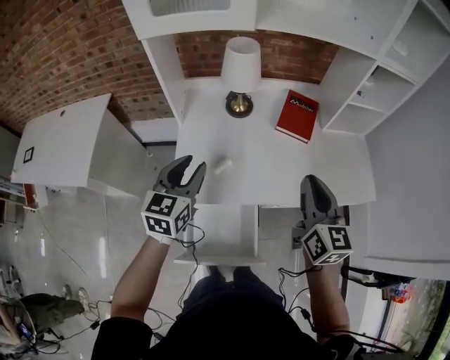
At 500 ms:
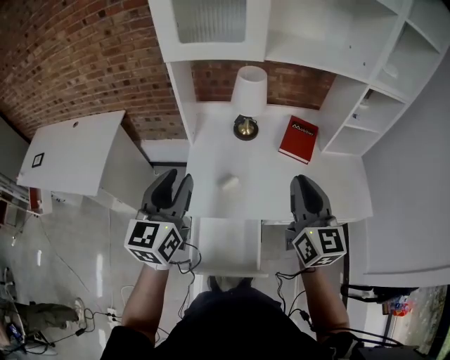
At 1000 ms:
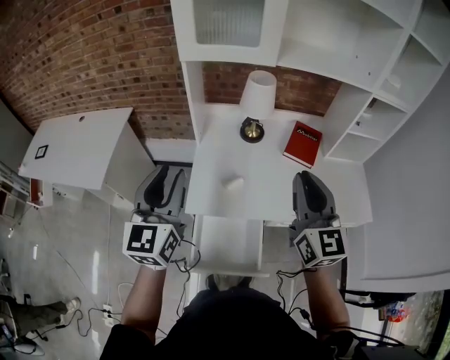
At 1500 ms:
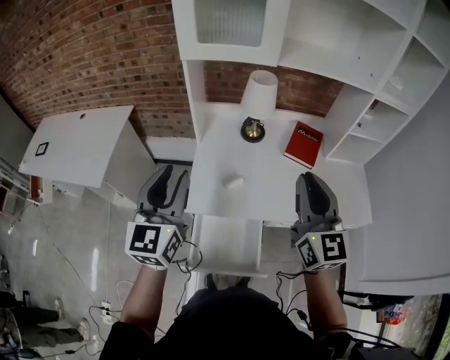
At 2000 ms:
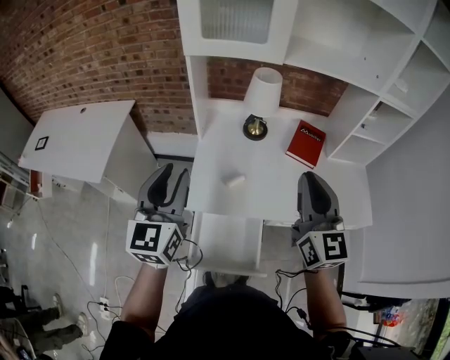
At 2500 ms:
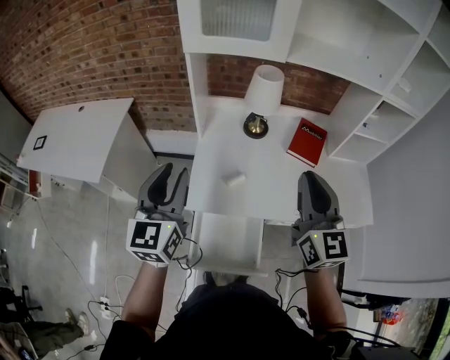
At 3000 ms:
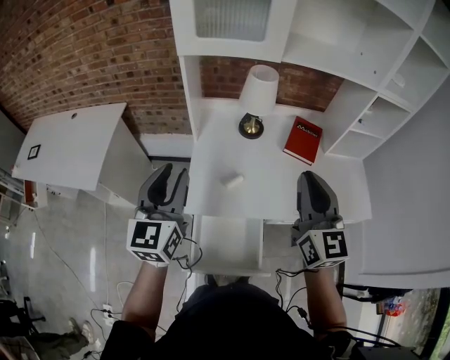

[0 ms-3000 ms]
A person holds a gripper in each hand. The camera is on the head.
0 ms to 1500 ms: The right gripper shifts some 15 cm upward and to the left, and rotates some 20 degrees; the left gripper heads upward, backward and to the left, covering about 20 cm, and rotates some 20 degrees.
1500 ms to 3000 ms: The left gripper ends up some 5 cm from where it was.

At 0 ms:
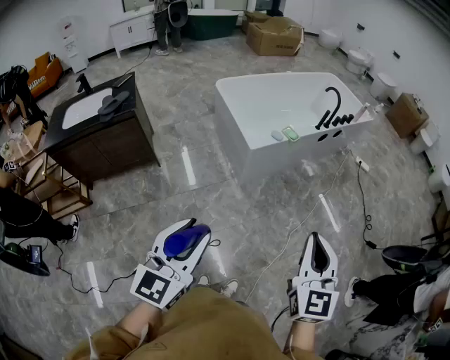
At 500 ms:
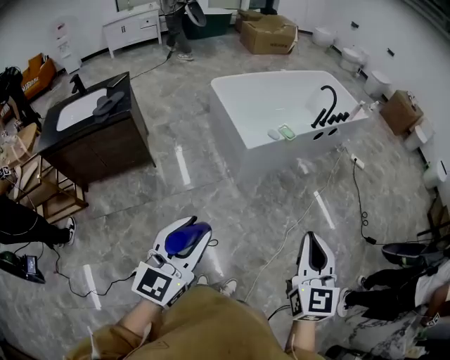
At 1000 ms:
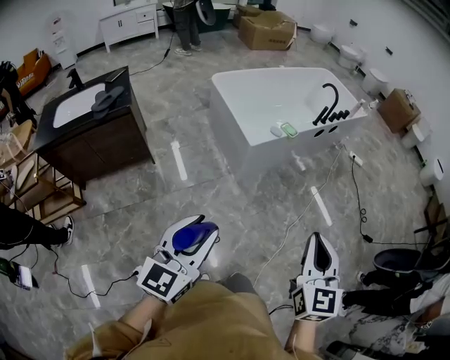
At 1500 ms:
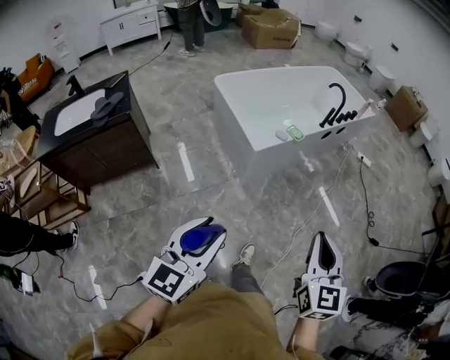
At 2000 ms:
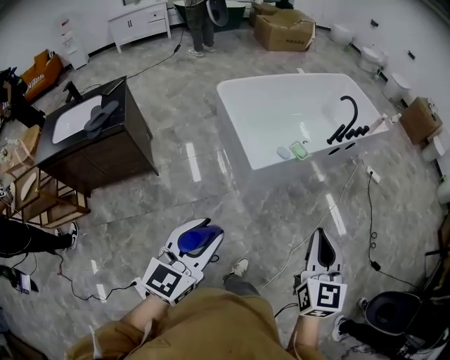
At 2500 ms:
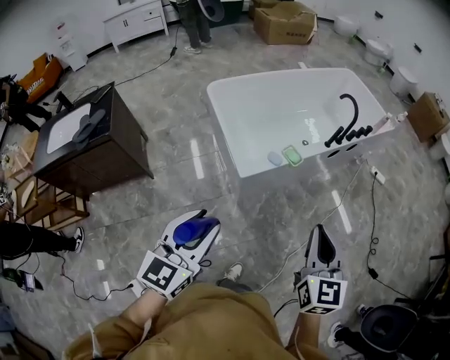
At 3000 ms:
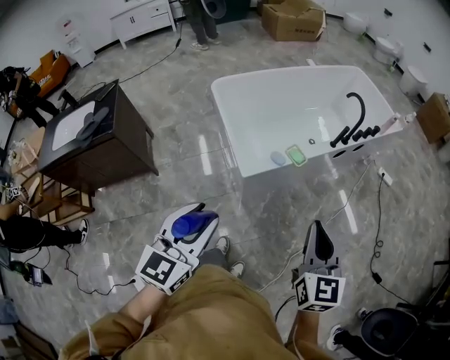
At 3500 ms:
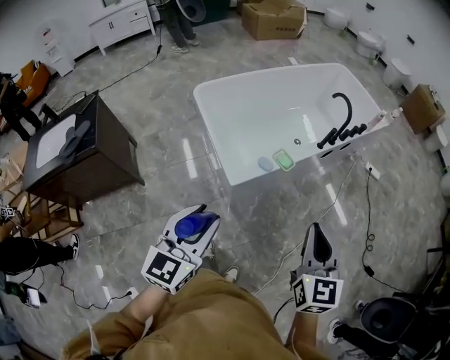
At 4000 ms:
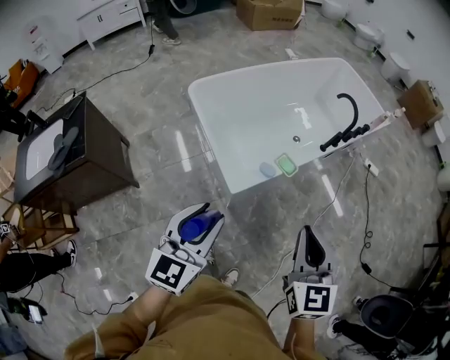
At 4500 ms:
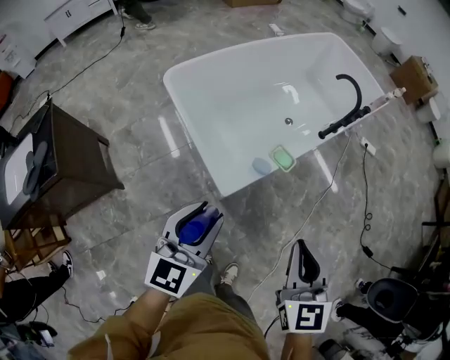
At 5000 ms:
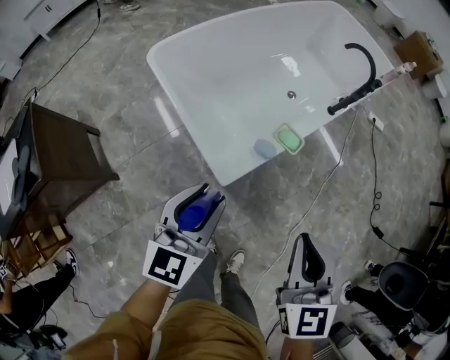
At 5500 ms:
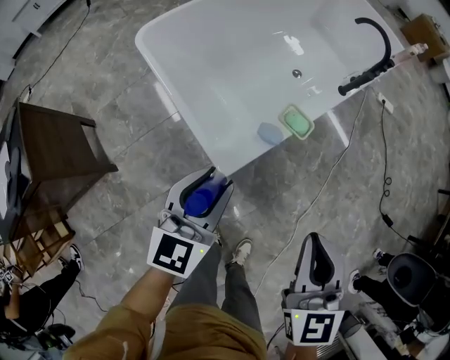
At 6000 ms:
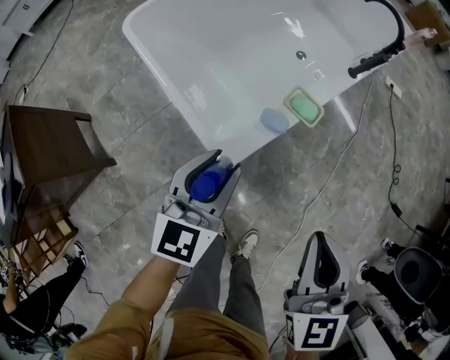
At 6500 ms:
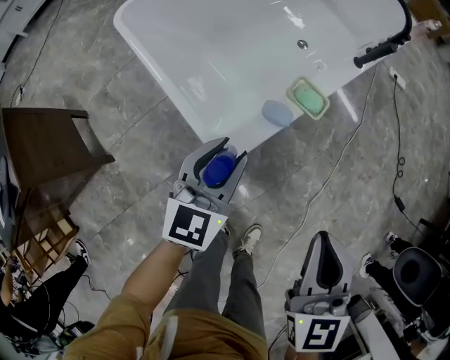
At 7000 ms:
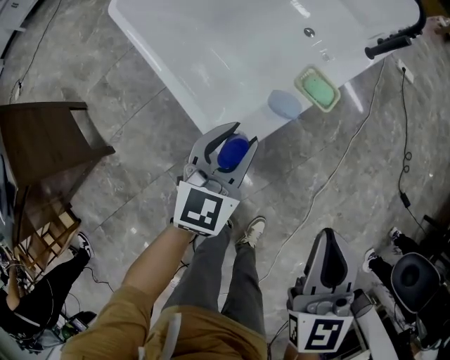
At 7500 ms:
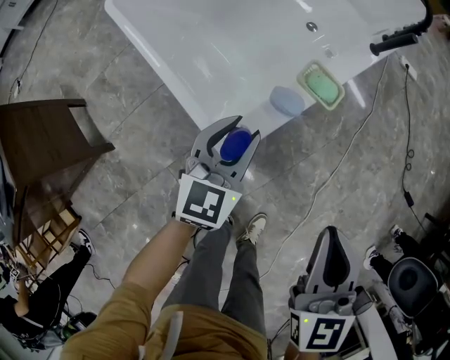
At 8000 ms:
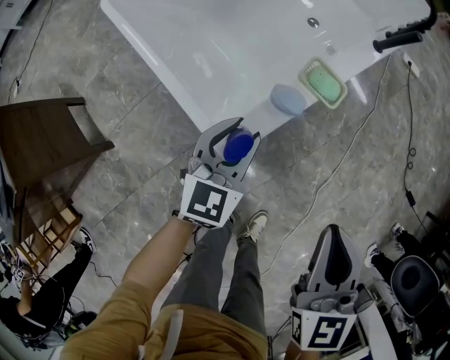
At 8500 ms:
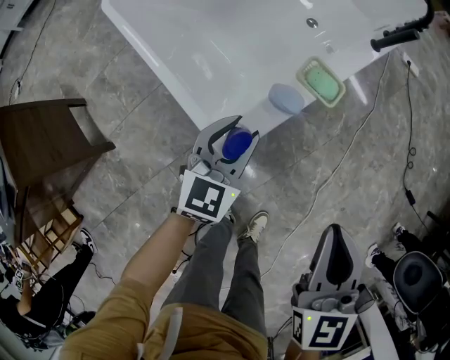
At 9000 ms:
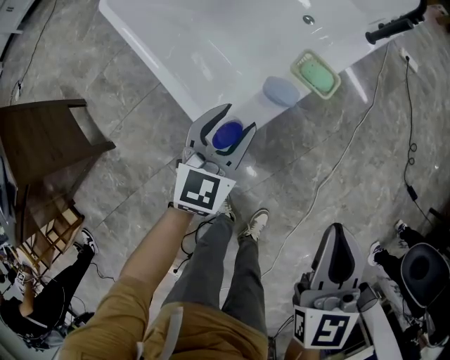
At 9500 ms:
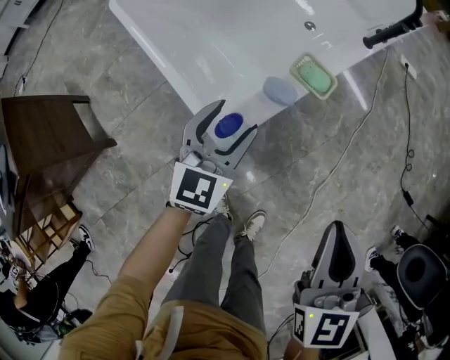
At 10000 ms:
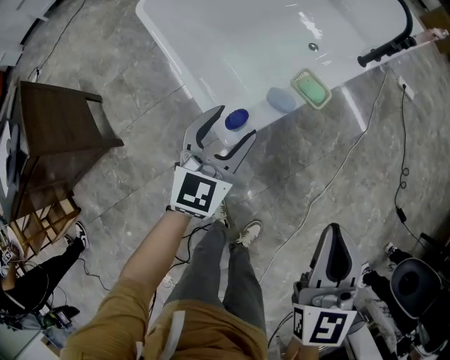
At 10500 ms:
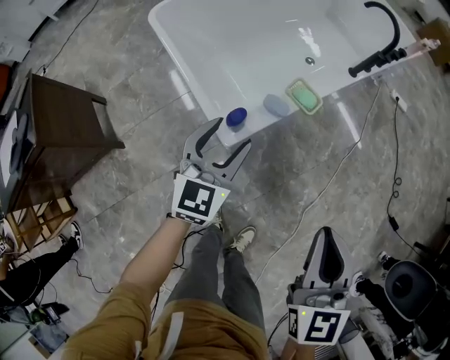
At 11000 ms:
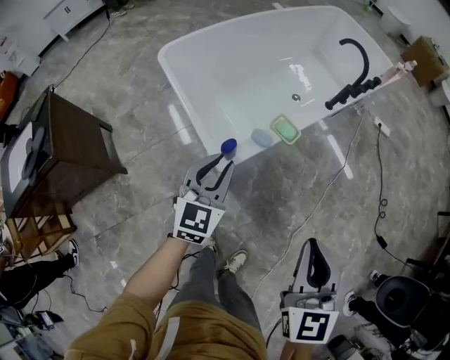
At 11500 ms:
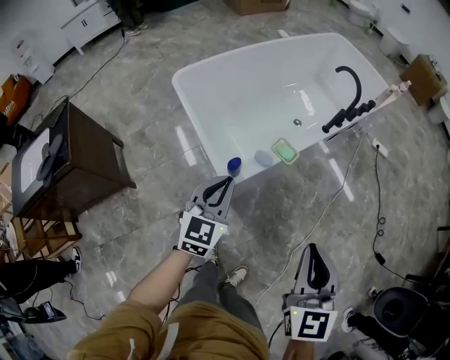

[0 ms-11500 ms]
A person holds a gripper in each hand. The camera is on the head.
0 ms to 2000 ms: The grippers both shift forward by roughly 20 cm.
2000 ms to 4000 ms: The two grippers go roughly 25 cm forward.
4000 ms to 6000 ms: The right gripper heads downward and forward, covering about 20 cm. The left gripper is displaced downward and forward by about 35 cm.
6000 ms to 7500 ms: The left gripper travels downward and forward by roughly 10 cm; the right gripper shifts about 5 cm downward.
7500 ms to 9500 ms: The left gripper opens up.
9500 ms to 11500 ms: The two grippers go approximately 20 cm upward and backward. The left gripper closes its fingers.

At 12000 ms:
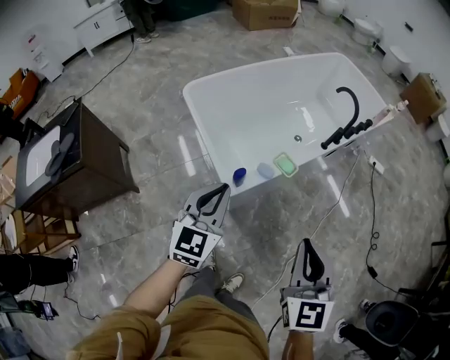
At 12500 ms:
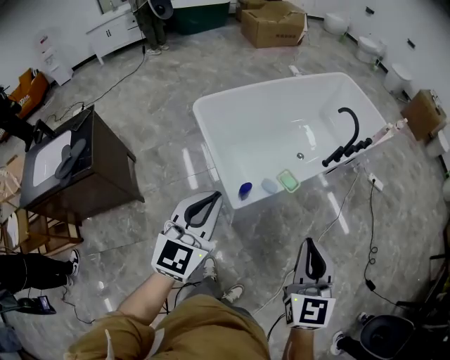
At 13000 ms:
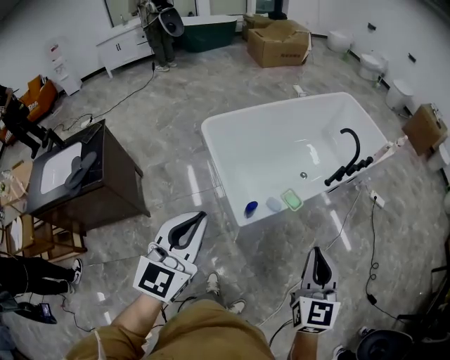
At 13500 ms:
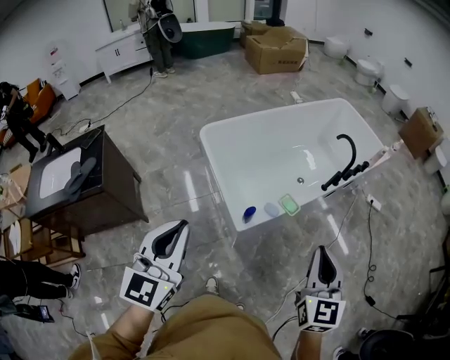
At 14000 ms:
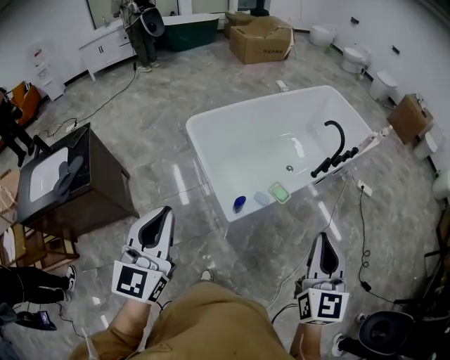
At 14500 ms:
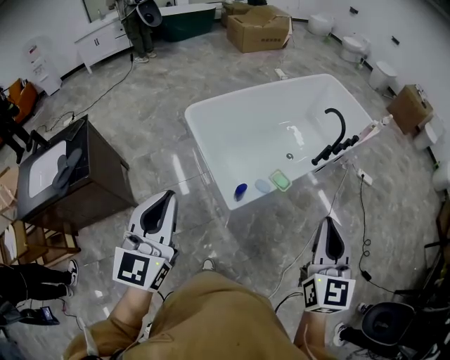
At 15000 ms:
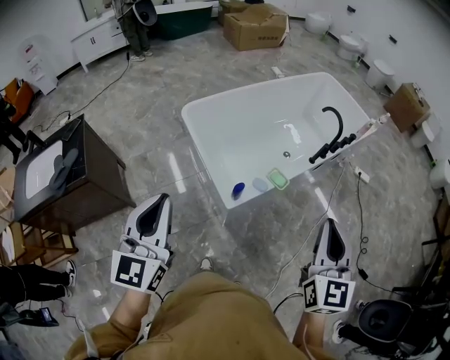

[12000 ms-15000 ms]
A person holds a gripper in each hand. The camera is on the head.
12000 ms to 13500 ms: The left gripper moves upward, to the left and backward, some 25 cm. The right gripper is displaced upward by about 5 cm.
13500 ms to 15000 ms: The grippers stay close to where they were, moving slightly.

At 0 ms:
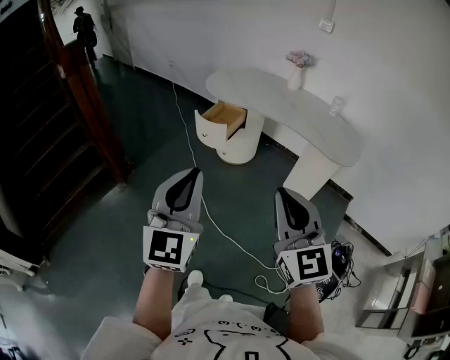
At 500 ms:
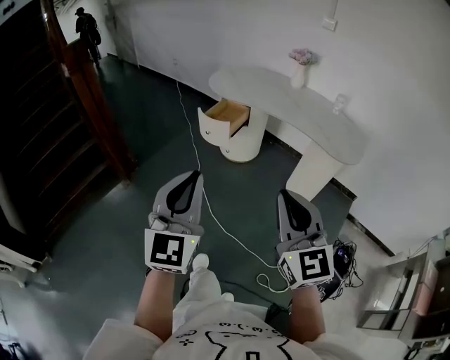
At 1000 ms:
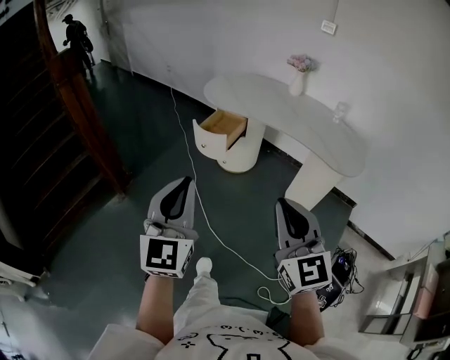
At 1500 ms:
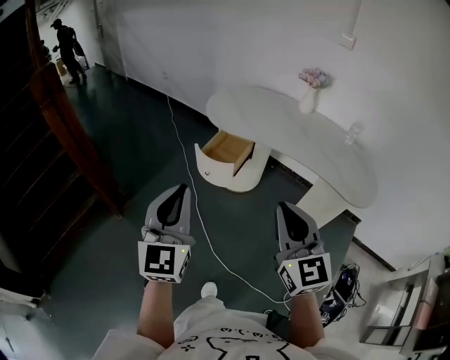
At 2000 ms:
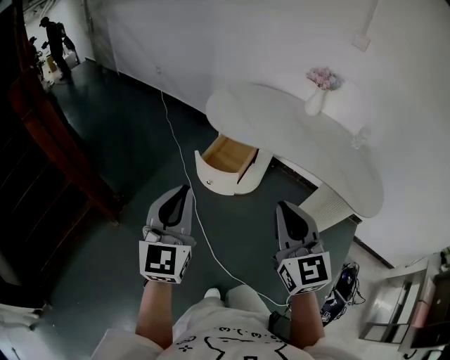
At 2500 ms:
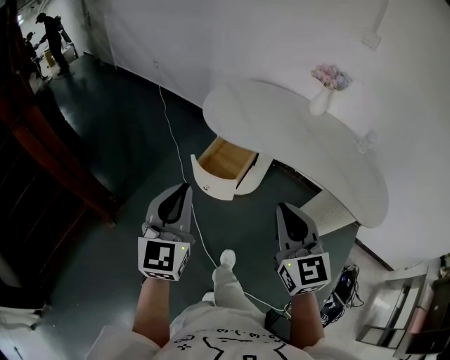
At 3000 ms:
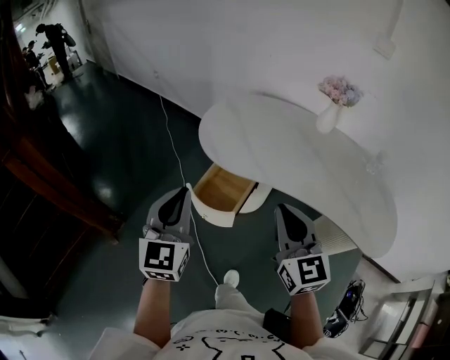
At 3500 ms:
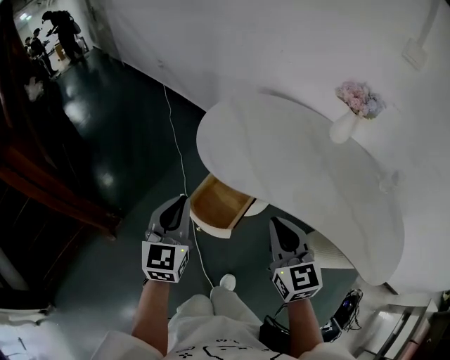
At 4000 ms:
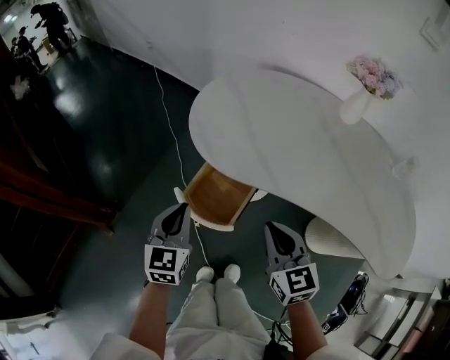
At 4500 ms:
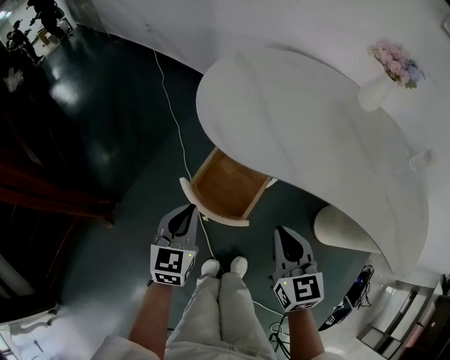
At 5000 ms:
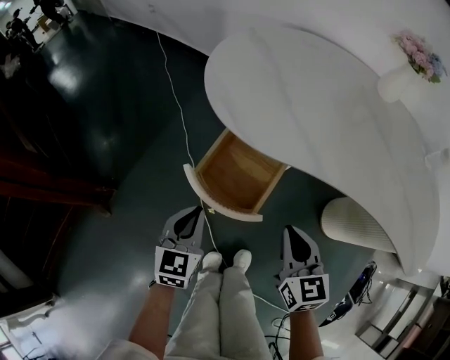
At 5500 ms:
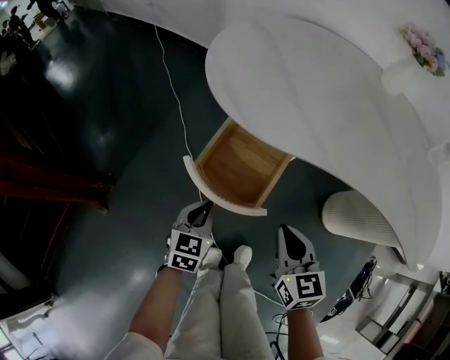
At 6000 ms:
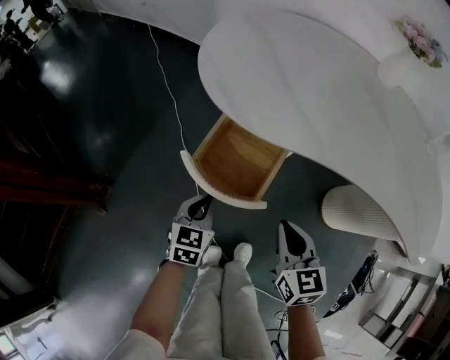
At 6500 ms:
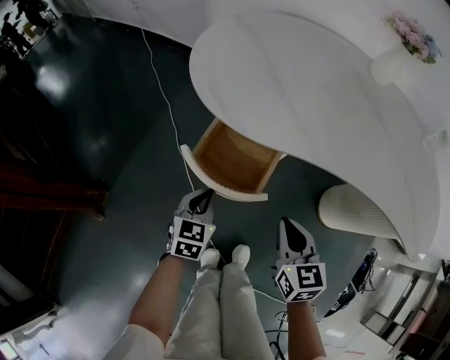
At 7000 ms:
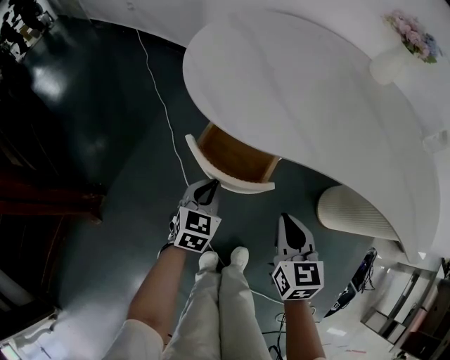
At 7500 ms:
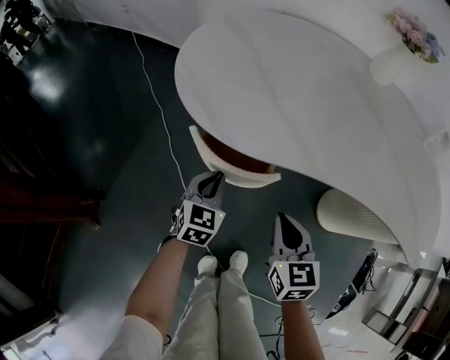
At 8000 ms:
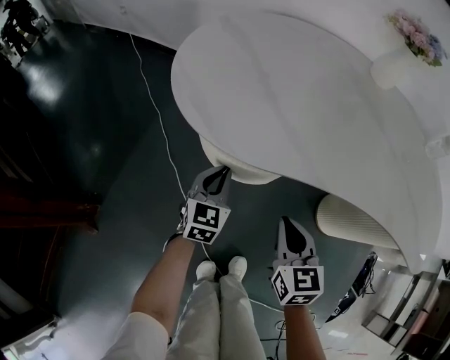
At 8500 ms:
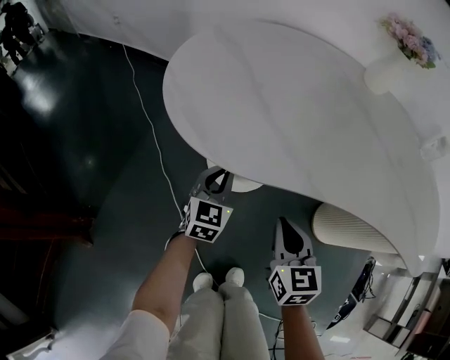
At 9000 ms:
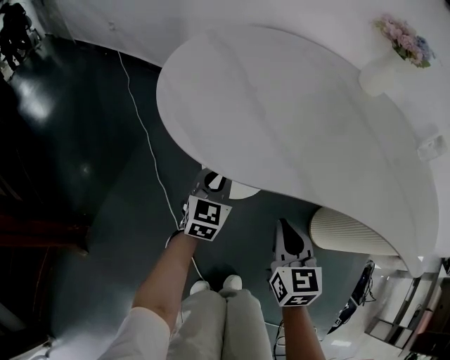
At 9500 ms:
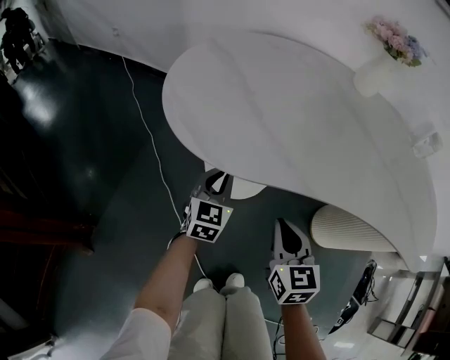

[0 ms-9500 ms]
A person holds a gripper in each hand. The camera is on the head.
0 ms to 2000 ms: The two grippers go some 40 cm forward.
2000 ms to 4000 ms: The two grippers go about 40 cm forward and downward. The left gripper rotates some 30 degrees. The right gripper turns by some 20 degrees.
4000 ms to 5500 ms: Both grippers travel together downward, approximately 20 cm.
5500 ms to 7500 ms: The left gripper heads forward and to the right, covering approximately 15 cm, while the right gripper shifts some 5 cm forward.
7500 ms to 9500 ms: The left gripper shifts some 10 cm forward.
